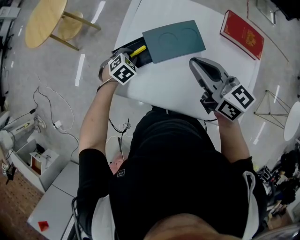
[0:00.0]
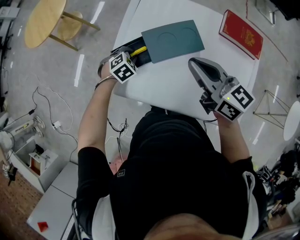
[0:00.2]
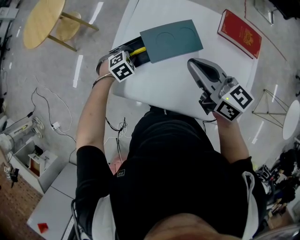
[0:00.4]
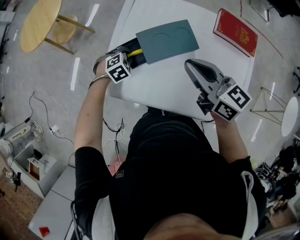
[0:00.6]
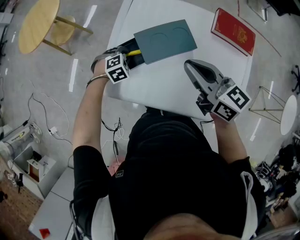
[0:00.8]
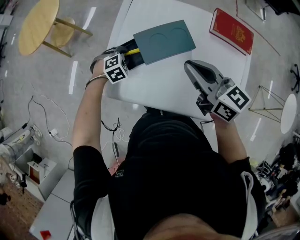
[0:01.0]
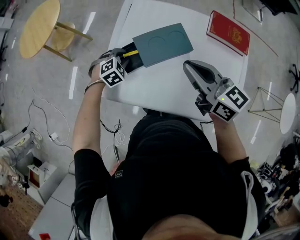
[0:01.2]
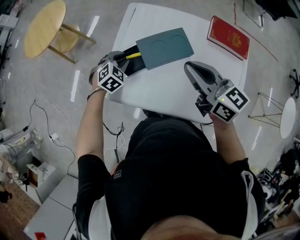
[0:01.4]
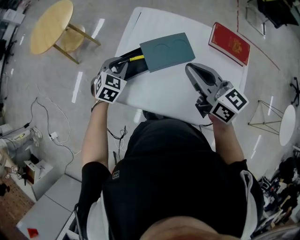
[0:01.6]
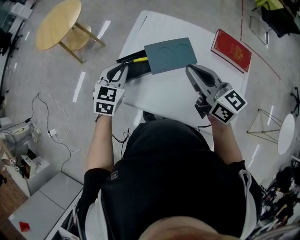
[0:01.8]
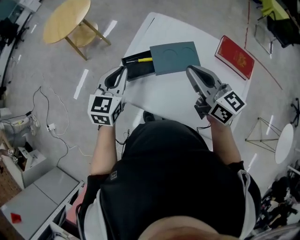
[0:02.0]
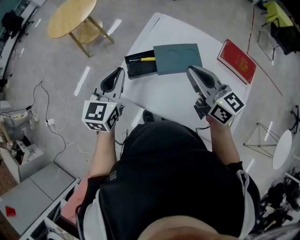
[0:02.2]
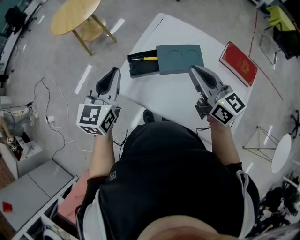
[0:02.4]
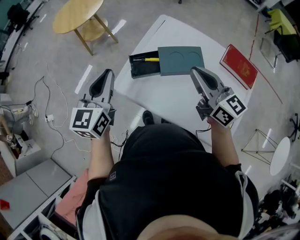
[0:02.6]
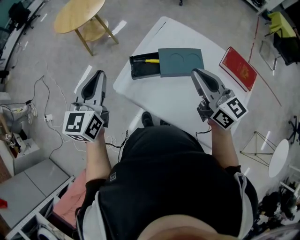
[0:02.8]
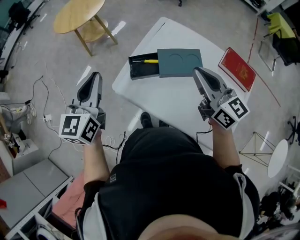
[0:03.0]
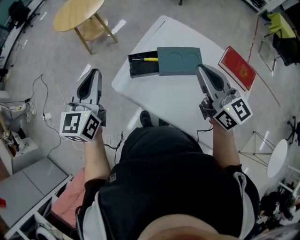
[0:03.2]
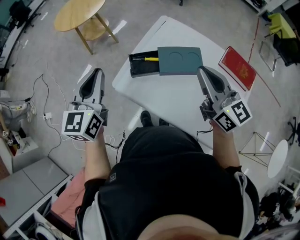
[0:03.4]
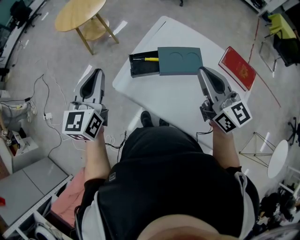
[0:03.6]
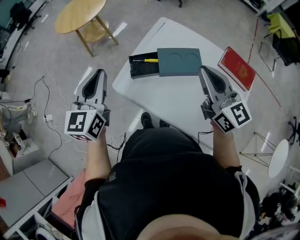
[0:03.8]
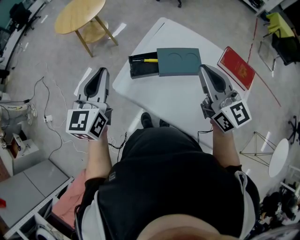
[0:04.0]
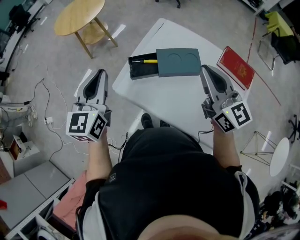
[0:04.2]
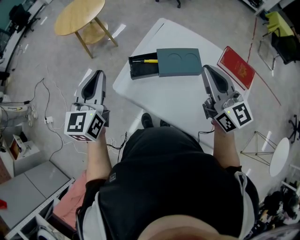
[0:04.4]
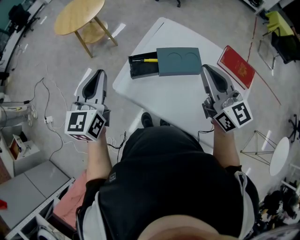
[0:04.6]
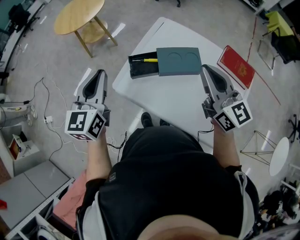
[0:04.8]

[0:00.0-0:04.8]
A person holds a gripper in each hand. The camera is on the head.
0:00.0 to 0:01.6: The left gripper is displaced upward by roughly 10 cm, and turns by some 20 degrees.
0:01.6 to 0:03.2: The left gripper is displaced upward, to the left and backward by roughly 30 cm, and angles its fingers upward, by some 30 degrees. The right gripper shifts roughly 5 cm upward.
0:03.2 to 0:04.8: The grippers make only small movements.

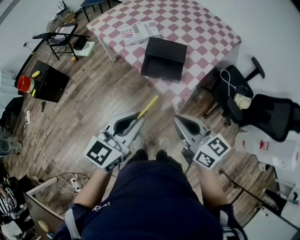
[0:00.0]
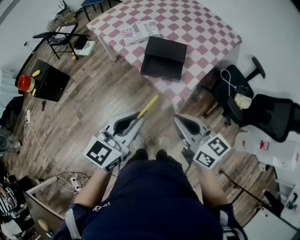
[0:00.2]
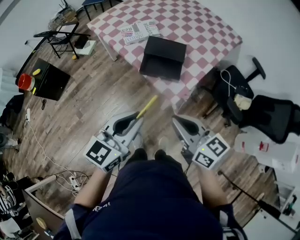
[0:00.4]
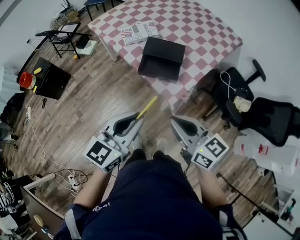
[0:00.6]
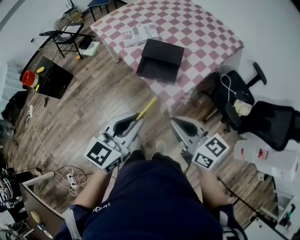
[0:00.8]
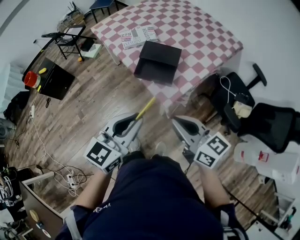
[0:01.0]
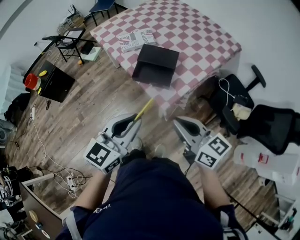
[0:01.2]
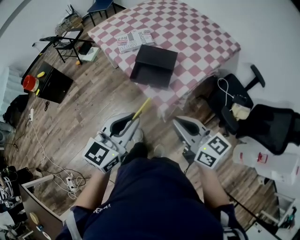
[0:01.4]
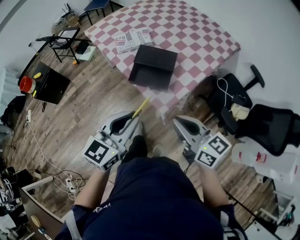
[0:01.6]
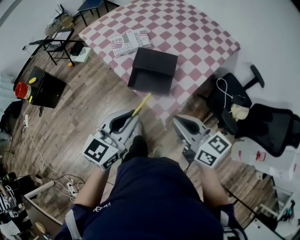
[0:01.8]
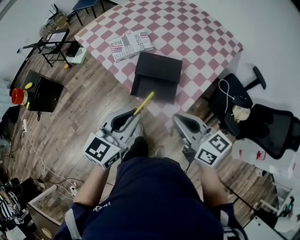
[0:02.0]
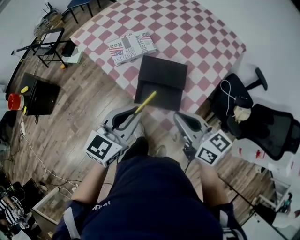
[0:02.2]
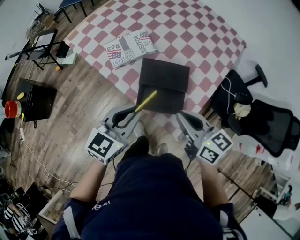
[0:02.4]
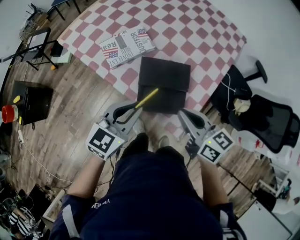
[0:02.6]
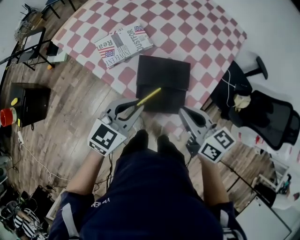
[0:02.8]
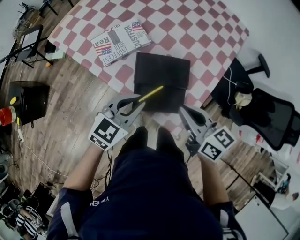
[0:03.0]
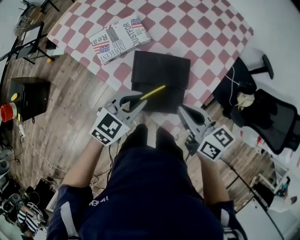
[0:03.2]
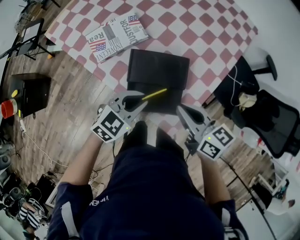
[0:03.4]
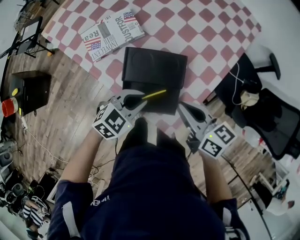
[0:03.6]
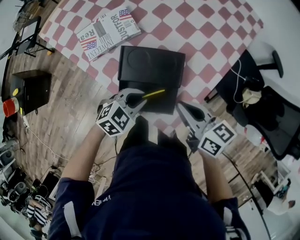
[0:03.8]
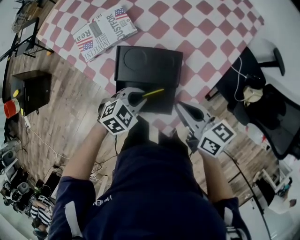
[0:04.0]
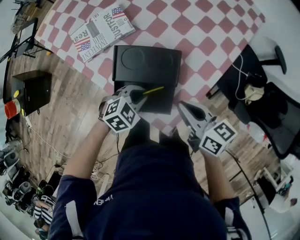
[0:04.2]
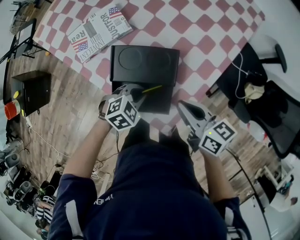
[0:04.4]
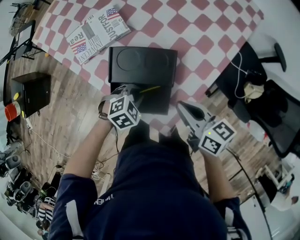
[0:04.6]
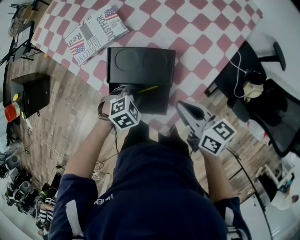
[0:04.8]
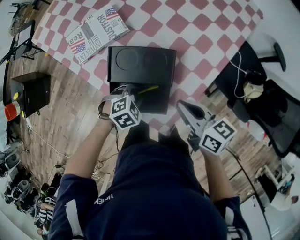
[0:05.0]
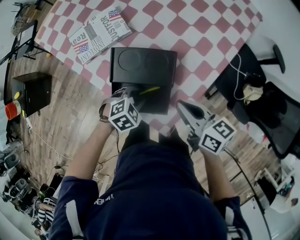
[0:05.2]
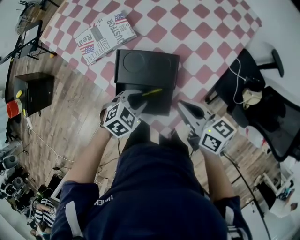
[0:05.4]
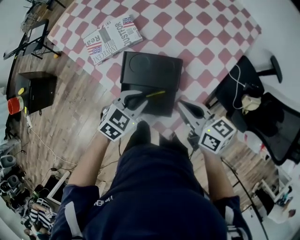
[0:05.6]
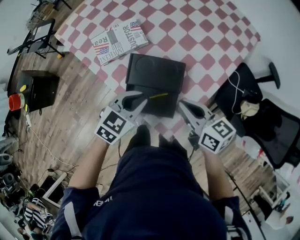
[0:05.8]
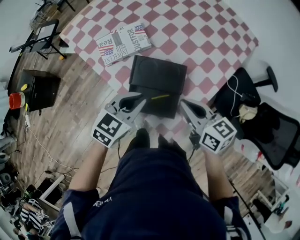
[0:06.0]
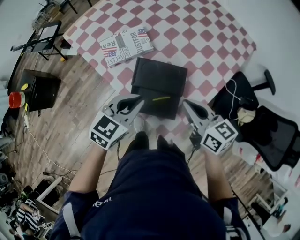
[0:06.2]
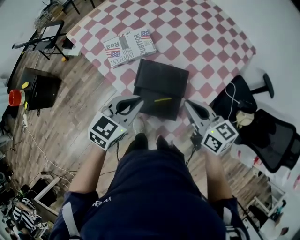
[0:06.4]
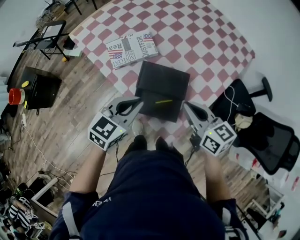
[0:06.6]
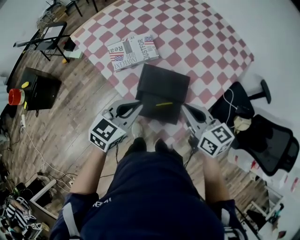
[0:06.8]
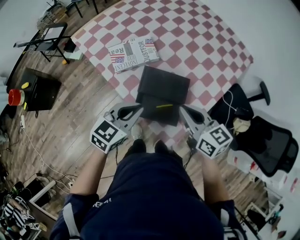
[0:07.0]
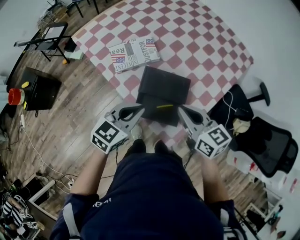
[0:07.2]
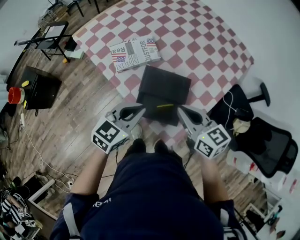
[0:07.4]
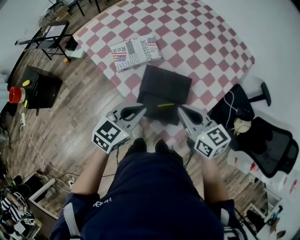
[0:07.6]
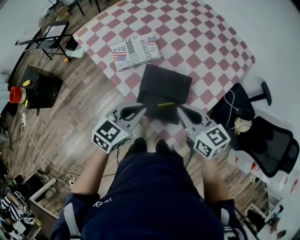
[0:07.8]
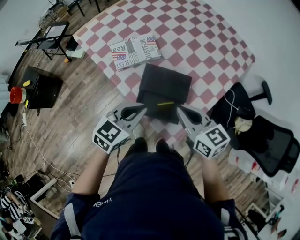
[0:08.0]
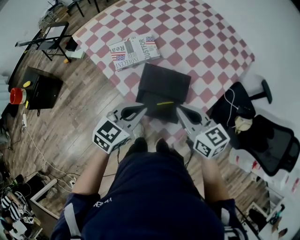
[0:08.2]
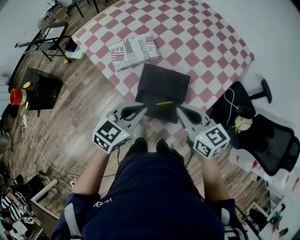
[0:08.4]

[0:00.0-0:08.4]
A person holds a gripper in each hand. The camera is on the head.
0:00.0 to 0:01.4: The two grippers go roughly 10 cm to the right.
0:01.4 to 0:02.8: The right gripper is displaced forward by about 25 cm, and rotates roughly 20 degrees, while the left gripper travels forward and downward by about 30 cm, and swivels about 20 degrees.
0:02.8 to 0:04.2: The right gripper shifts approximately 15 cm downward and to the right. The left gripper moves downward and to the right, approximately 20 cm, and points its fingers about 30 degrees further downward.
0:04.2 to 0:05.6: The left gripper travels upward by roughly 10 cm.
0:05.6 to 0:07.0: Both grippers move upward and to the left, approximately 10 cm. The left gripper swivels about 20 degrees.
0:07.0 to 0:08.4: The grippers make only small movements.

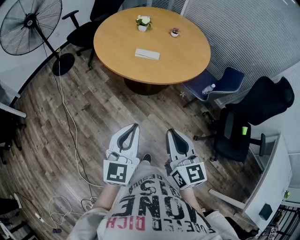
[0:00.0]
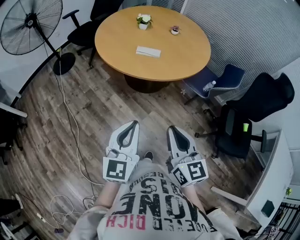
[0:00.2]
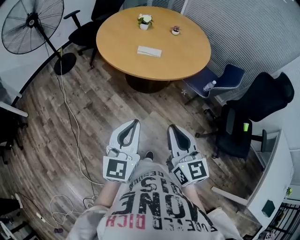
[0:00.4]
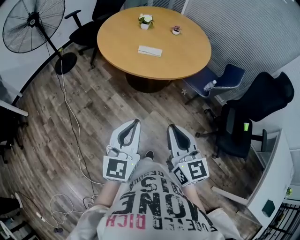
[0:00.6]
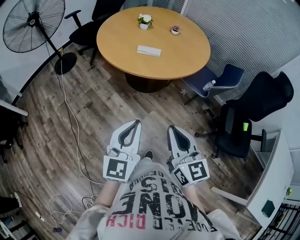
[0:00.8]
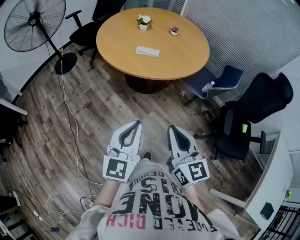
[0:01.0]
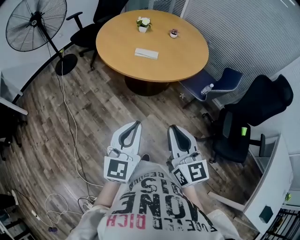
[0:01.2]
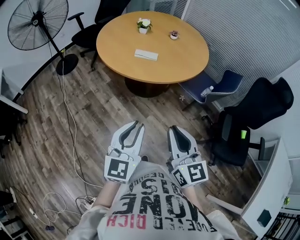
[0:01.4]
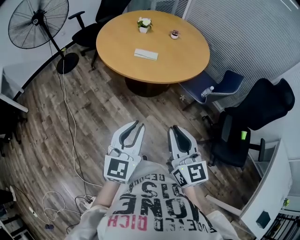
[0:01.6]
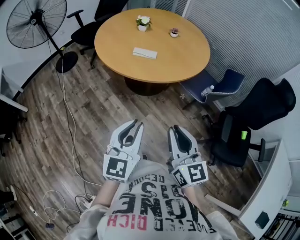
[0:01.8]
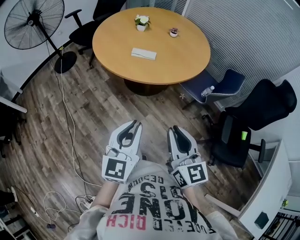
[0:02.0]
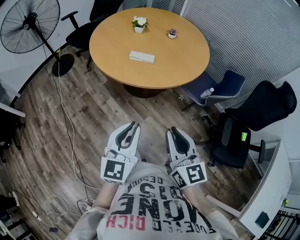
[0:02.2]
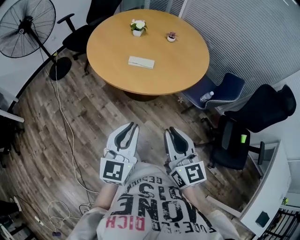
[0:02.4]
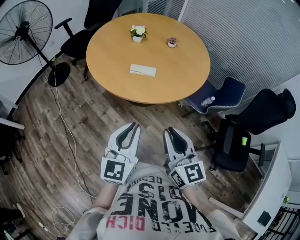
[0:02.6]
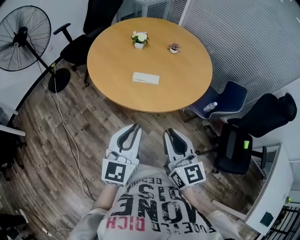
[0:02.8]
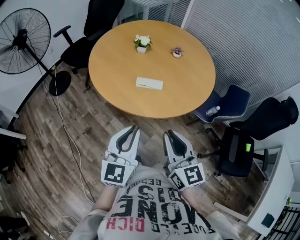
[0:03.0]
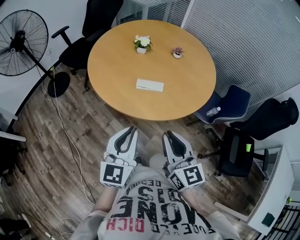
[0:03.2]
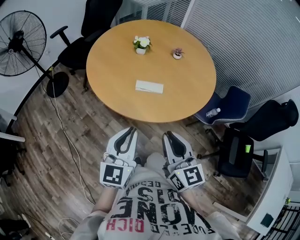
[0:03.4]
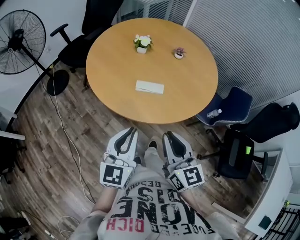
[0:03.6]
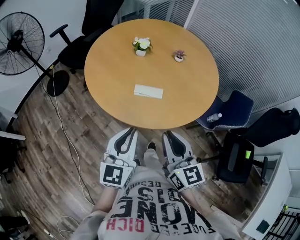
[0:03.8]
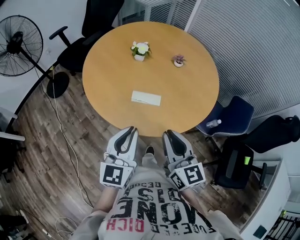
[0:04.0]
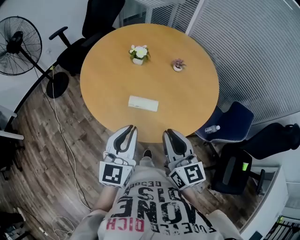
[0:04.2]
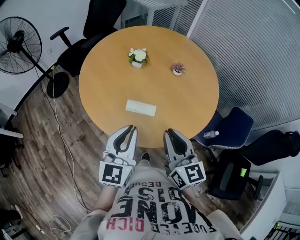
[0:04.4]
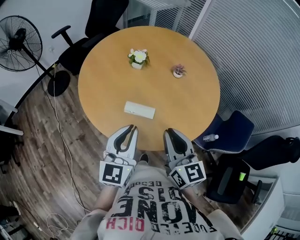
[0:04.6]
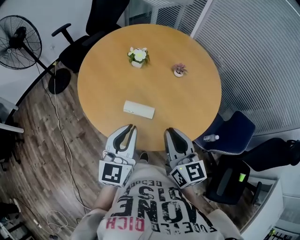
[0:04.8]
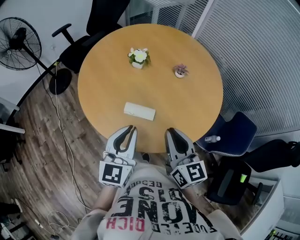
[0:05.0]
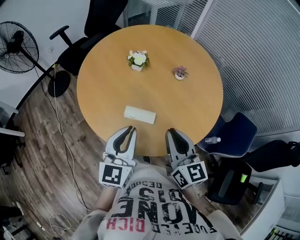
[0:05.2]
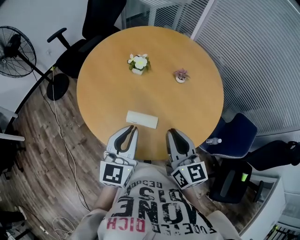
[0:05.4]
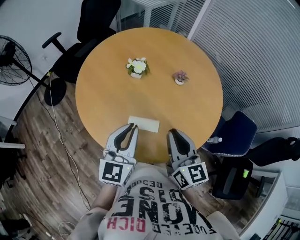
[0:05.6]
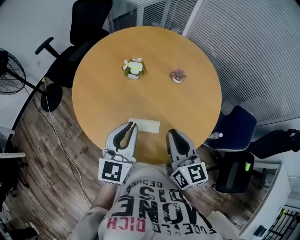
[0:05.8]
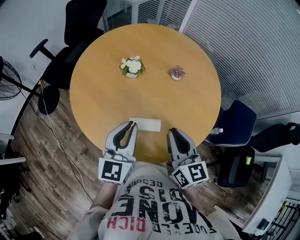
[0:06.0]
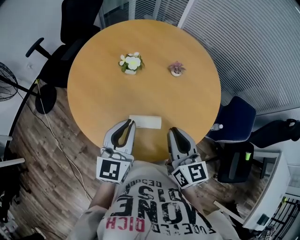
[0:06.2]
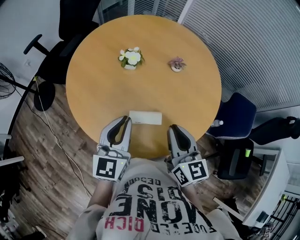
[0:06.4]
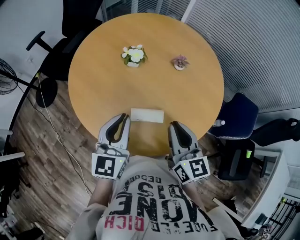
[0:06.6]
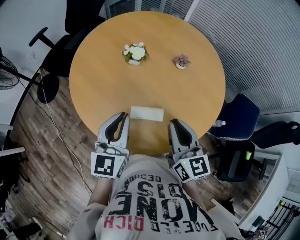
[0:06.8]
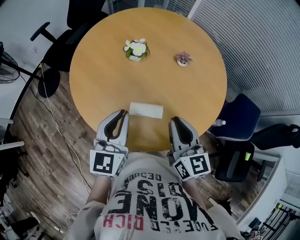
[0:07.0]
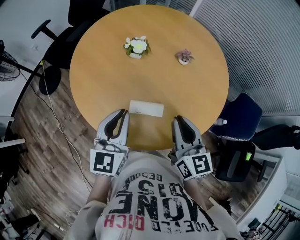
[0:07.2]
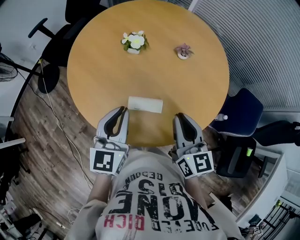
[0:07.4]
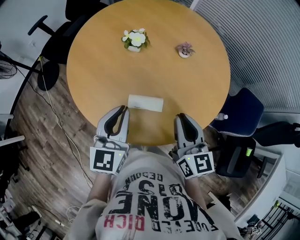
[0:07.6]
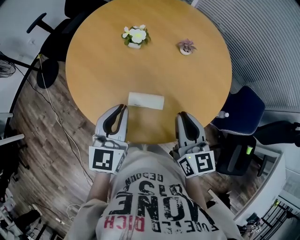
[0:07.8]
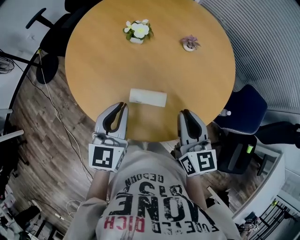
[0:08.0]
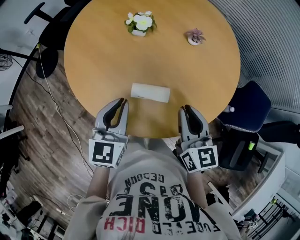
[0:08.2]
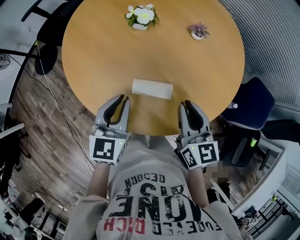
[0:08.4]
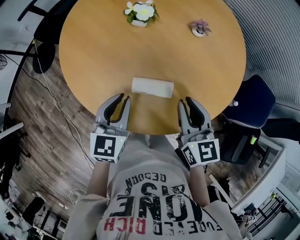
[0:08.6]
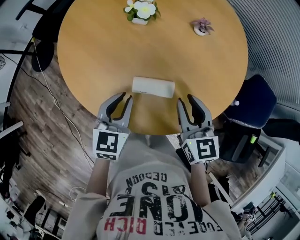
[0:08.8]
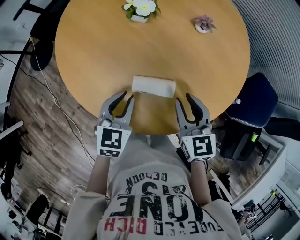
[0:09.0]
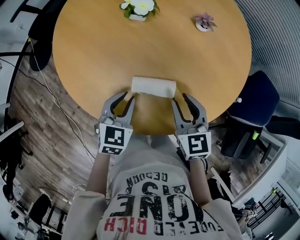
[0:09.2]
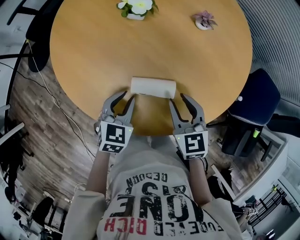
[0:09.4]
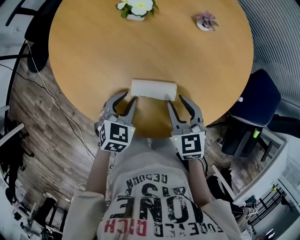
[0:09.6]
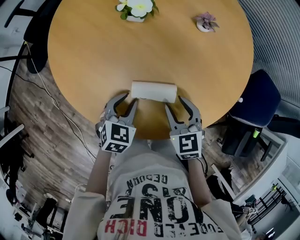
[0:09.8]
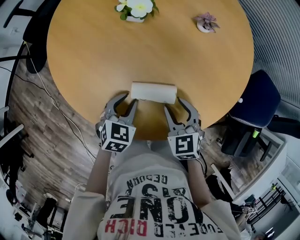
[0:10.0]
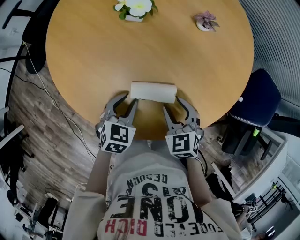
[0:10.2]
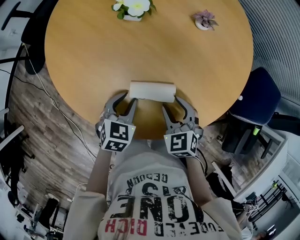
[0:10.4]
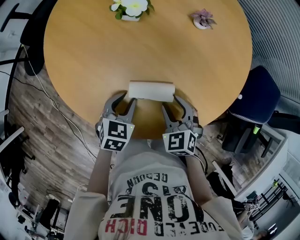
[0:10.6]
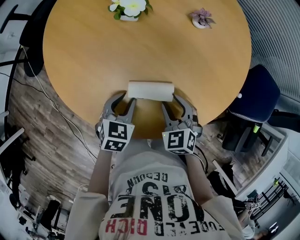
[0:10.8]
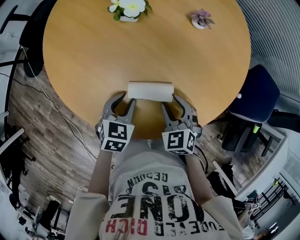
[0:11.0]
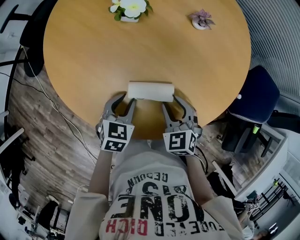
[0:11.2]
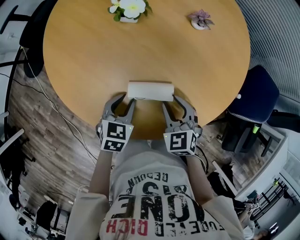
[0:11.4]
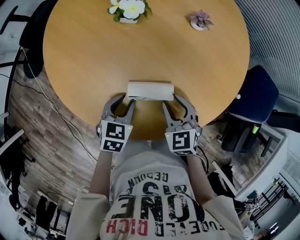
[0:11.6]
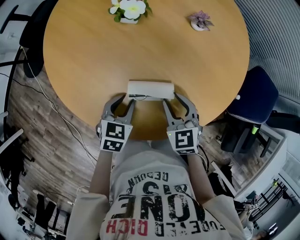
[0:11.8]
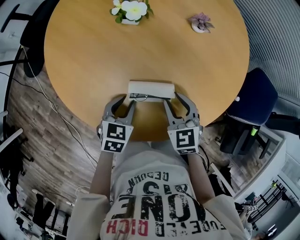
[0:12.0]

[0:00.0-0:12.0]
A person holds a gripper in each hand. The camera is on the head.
0:00.0 to 0:01.6: The left gripper moves to the right, about 5 cm.
0:01.6 to 0:03.0: The right gripper is displaced forward and to the left by some 25 cm. Meanwhile the left gripper shifts some 20 cm forward.
0:03.0 to 0:04.4: Both grippers move forward, some 20 cm.
0:04.4 to 0:06.0: Both grippers move forward, roughly 10 cm.
0:06.0 to 0:07.6: The grippers make only small movements.
0:07.6 to 0:09.0: The two grippers go about 15 cm downward. The right gripper swivels some 20 degrees. The left gripper changes its angle by roughly 20 degrees.
0:09.0 to 0:10.4: The two grippers go roughly 10 cm downward. The right gripper turns by approximately 30 degrees.
0:10.4 to 0:12.0: The grippers make only small movements.
